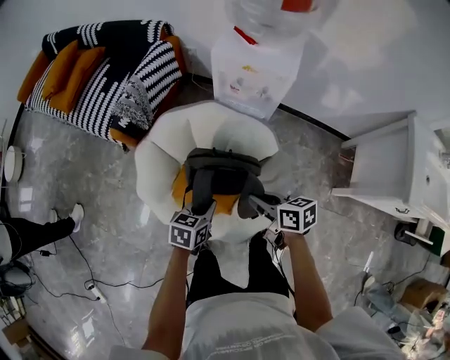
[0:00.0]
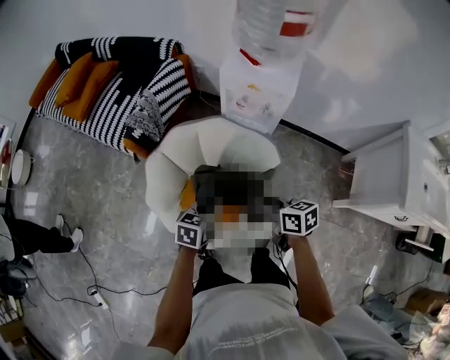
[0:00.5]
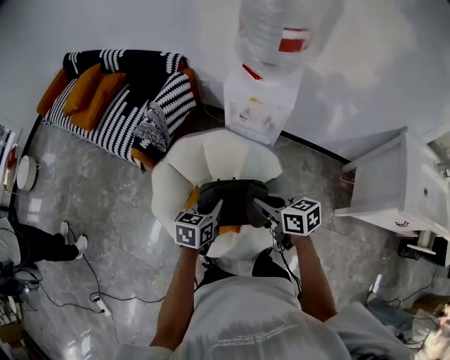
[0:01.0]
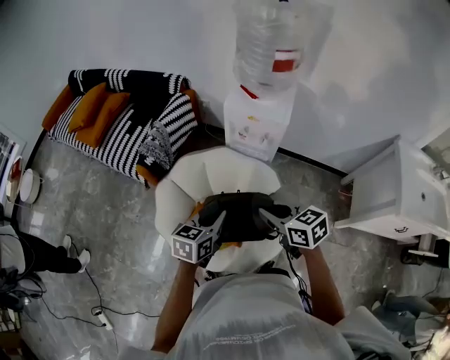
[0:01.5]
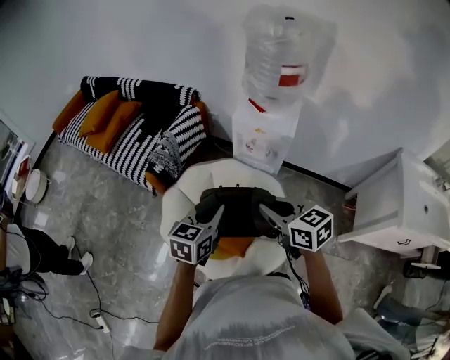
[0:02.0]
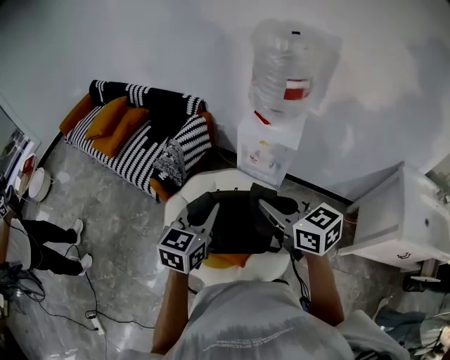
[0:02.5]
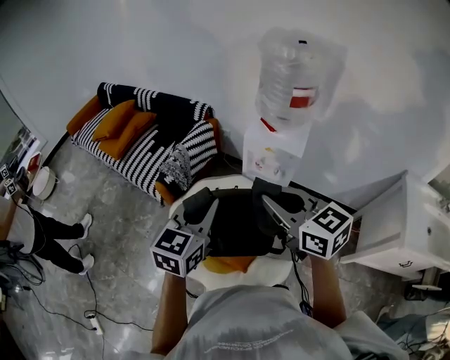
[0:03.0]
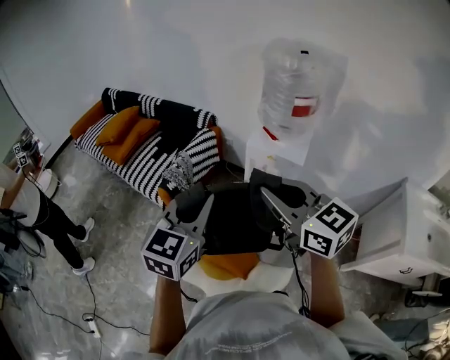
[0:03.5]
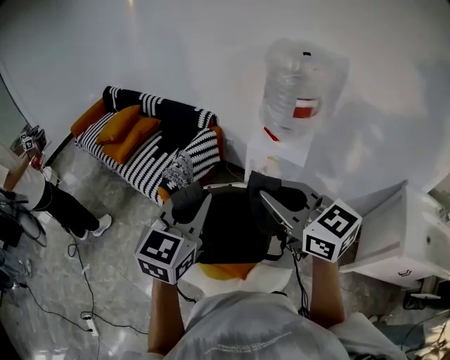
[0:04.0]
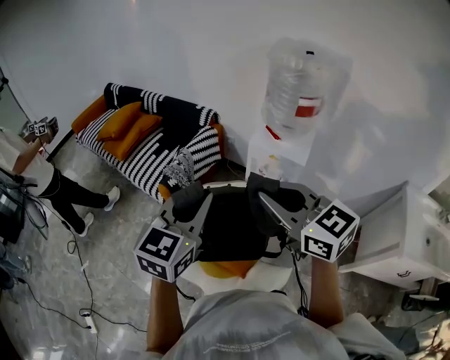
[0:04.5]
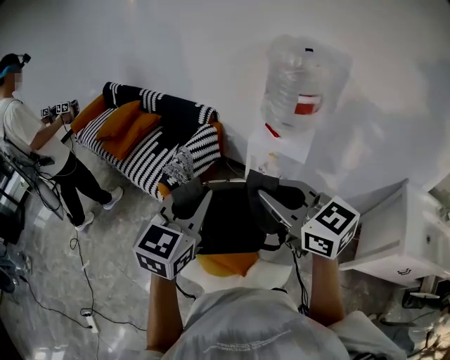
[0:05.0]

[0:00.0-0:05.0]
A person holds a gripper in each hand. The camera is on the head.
0:00.0 to 0:02.5: The two grippers go approximately 30 cm upward. The left gripper swivels about 30 degrees. Meanwhile the right gripper changes its angle by some 40 degrees.
0:02.5 to 0:05.0: The two grippers go some 10 cm upward.

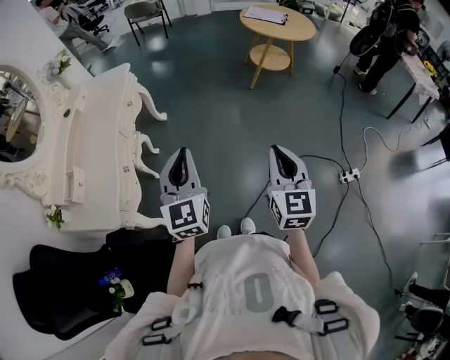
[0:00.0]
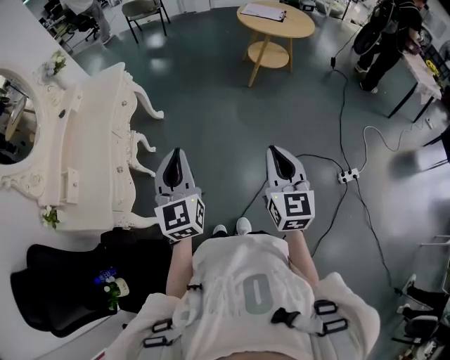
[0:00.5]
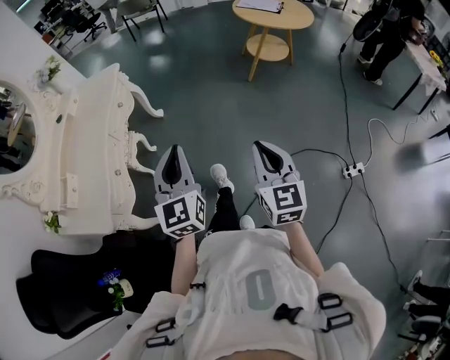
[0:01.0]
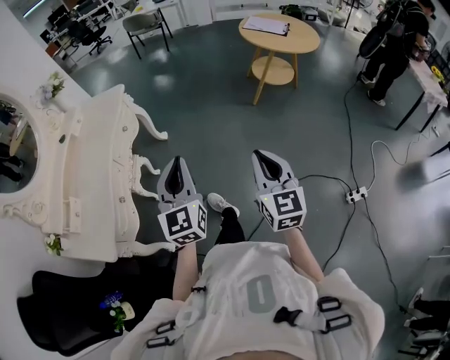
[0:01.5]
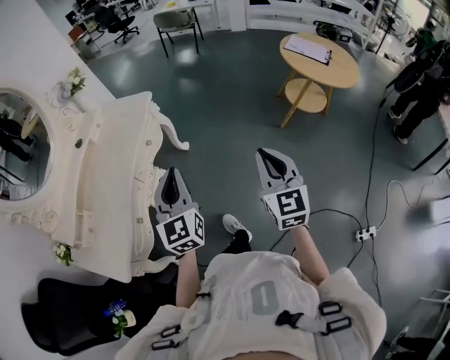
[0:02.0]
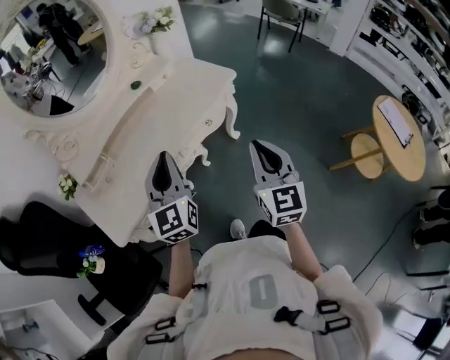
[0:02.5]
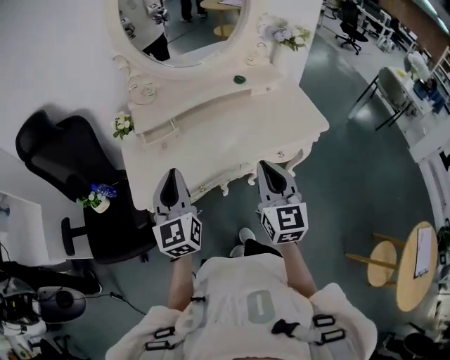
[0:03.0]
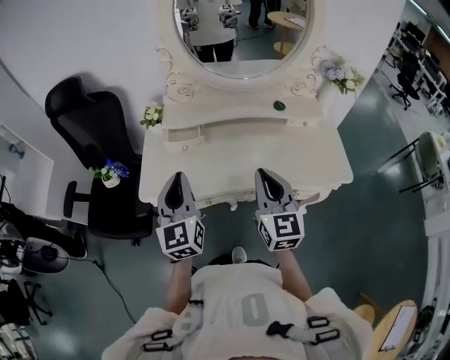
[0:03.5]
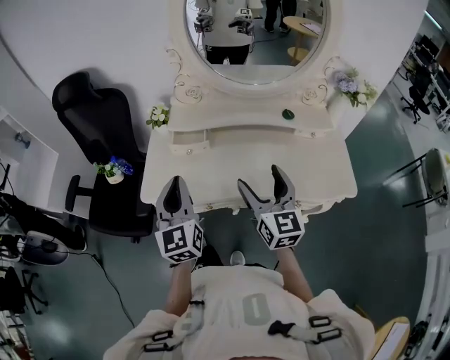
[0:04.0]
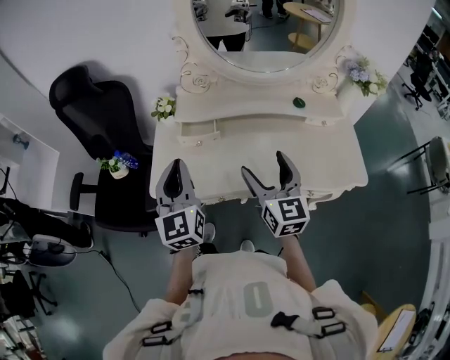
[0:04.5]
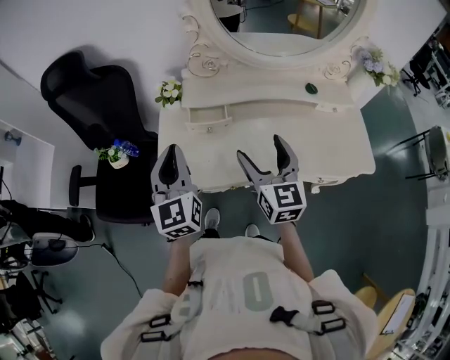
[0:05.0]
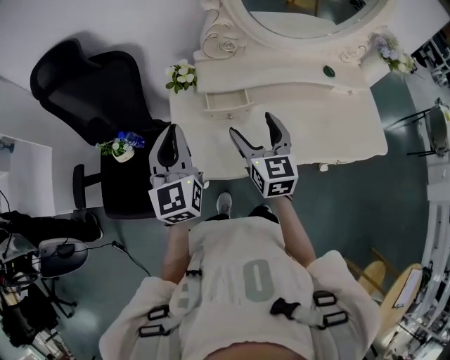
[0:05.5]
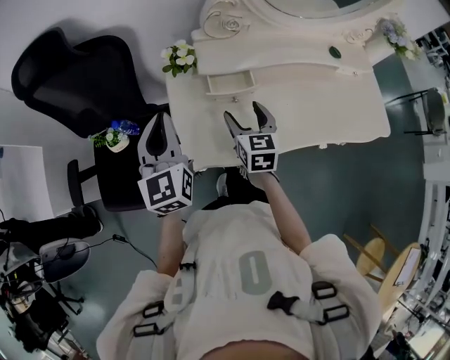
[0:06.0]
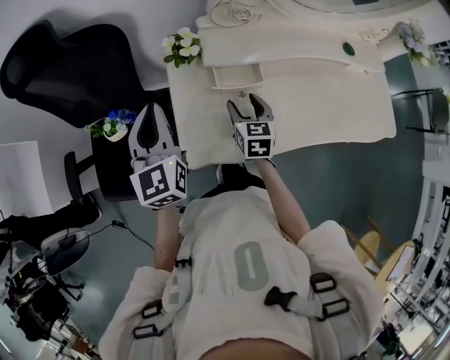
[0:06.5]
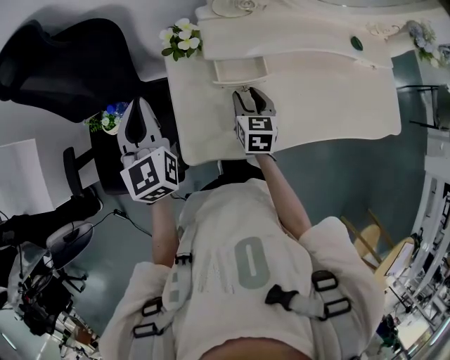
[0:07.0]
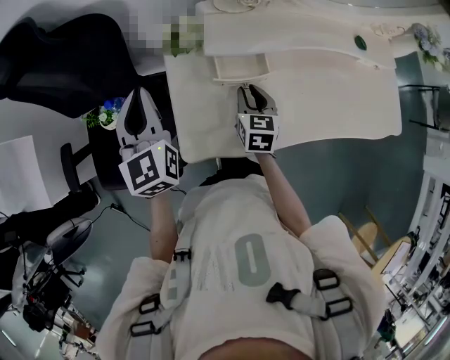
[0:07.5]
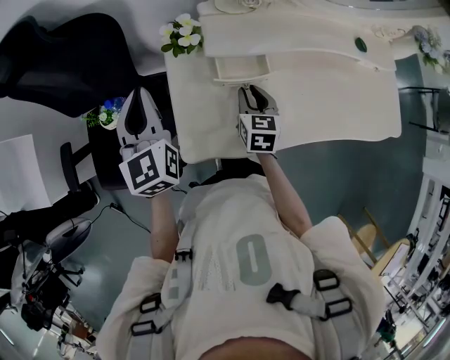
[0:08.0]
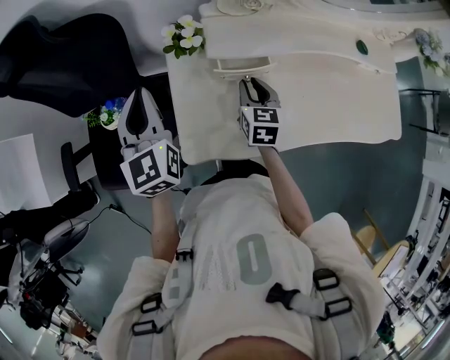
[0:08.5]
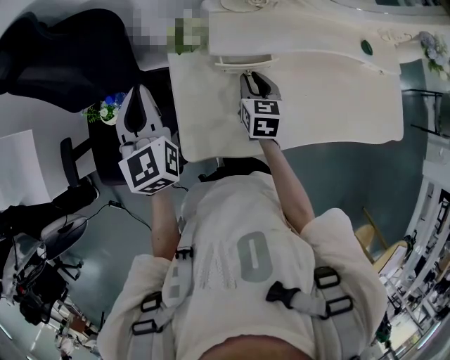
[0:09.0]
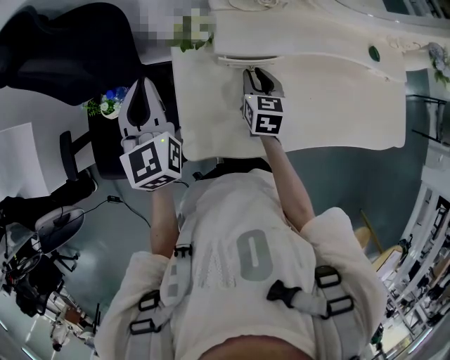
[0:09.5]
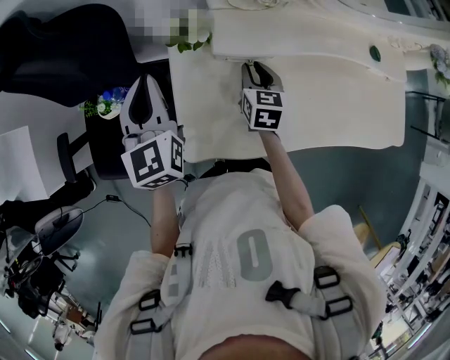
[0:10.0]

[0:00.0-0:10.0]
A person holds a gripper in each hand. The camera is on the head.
0:00.0 to 0:02.0: The grippers both shift forward by approximately 30 cm.
0:02.0 to 0:04.0: The right gripper ends up approximately 60 cm from where it was, turns by roughly 90 degrees, and opens up; the left gripper shifts by approximately 35 cm, and turns by some 80 degrees.
0:04.0 to 0:06.0: The left gripper goes roughly 25 cm to the left and forward; the right gripper moves to the left, forward and downward, some 35 cm, and swivels about 20 degrees.
0:06.0 to 0:08.0: The right gripper moves downward, some 5 cm, and closes its fingers, while the left gripper is displaced forward by roughly 10 cm.
0:08.0 to 0:10.0: The right gripper travels forward by about 5 cm.

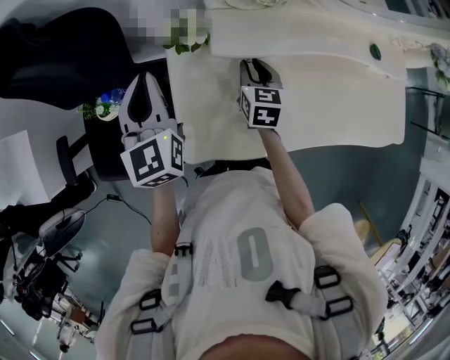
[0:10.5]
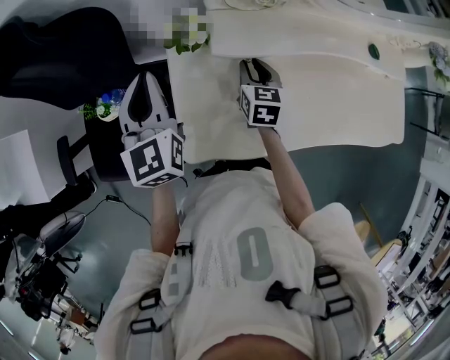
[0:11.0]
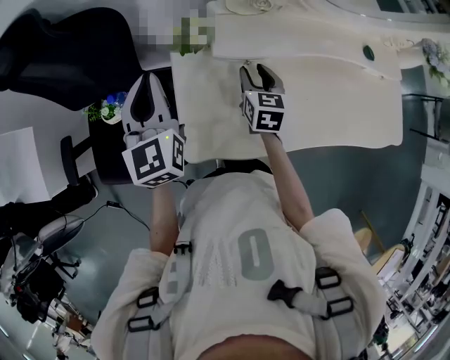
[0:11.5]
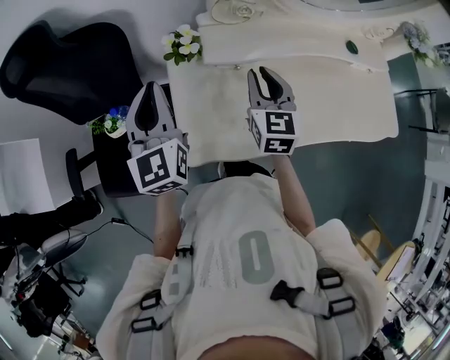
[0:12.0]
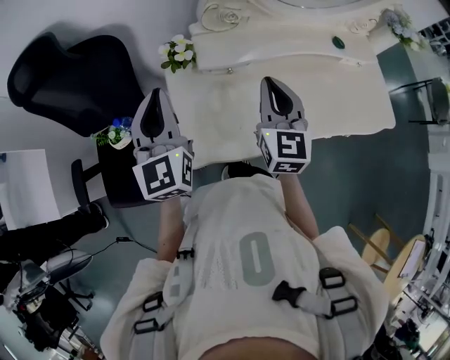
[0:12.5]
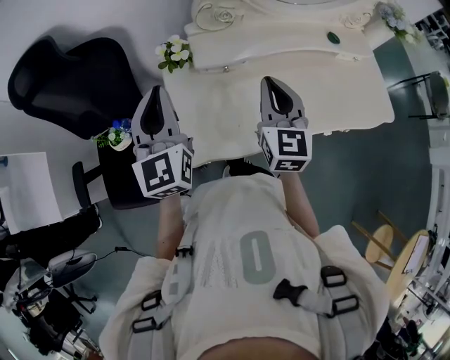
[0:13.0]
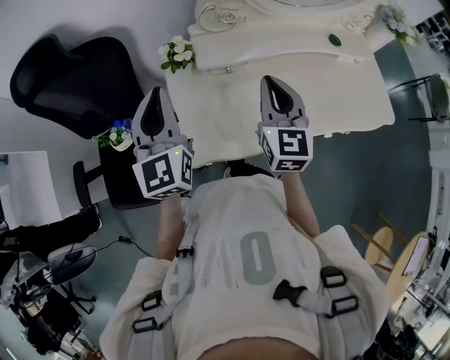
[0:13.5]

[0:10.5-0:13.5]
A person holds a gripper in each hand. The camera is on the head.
0:10.5 to 0:12.0: The right gripper travels upward and backward by roughly 15 cm; the left gripper heads backward and upward, covering some 10 cm.
0:12.0 to 0:13.5: The left gripper moves roughly 5 cm. Meanwhile the right gripper is displaced backward and upward by approximately 10 cm.

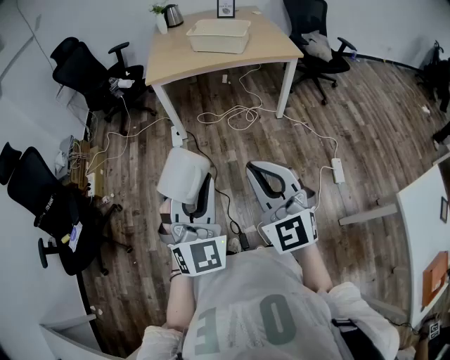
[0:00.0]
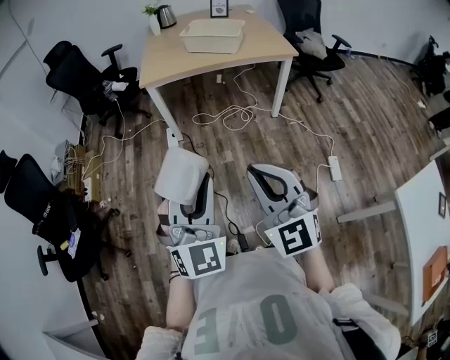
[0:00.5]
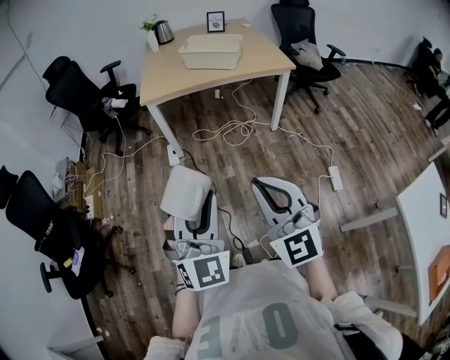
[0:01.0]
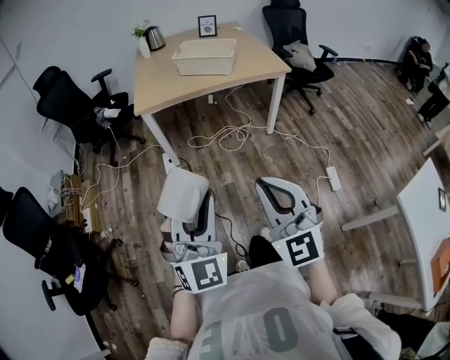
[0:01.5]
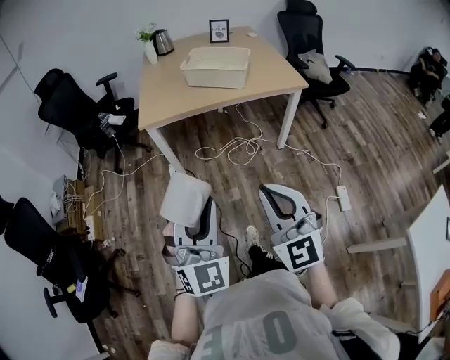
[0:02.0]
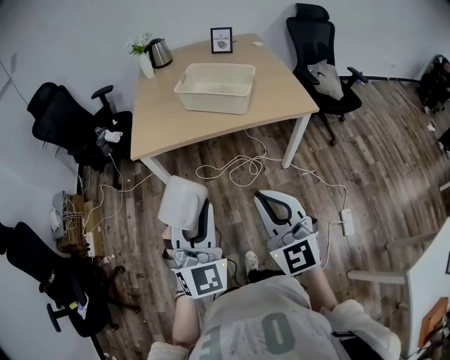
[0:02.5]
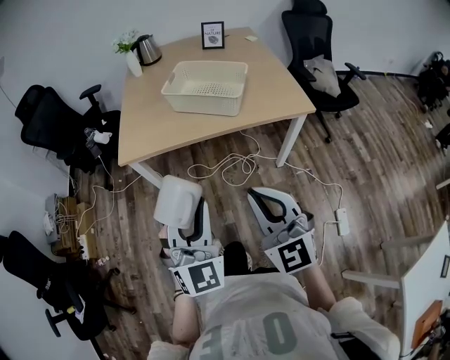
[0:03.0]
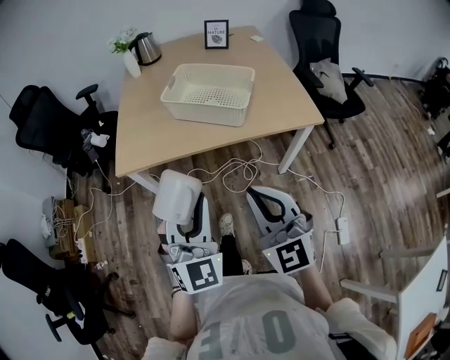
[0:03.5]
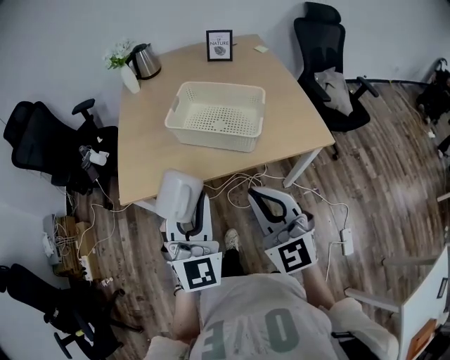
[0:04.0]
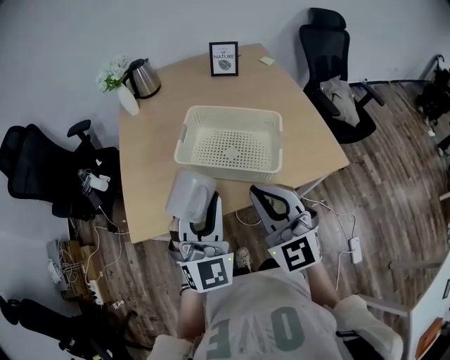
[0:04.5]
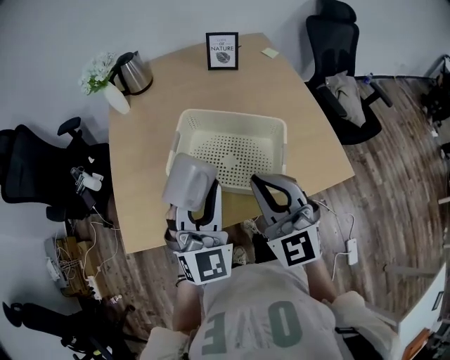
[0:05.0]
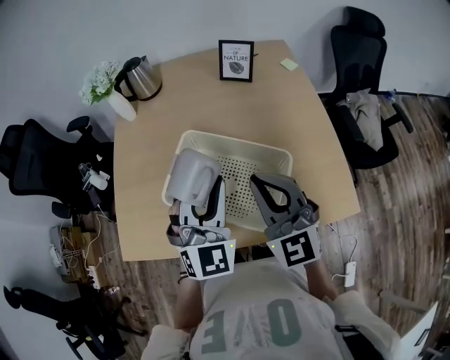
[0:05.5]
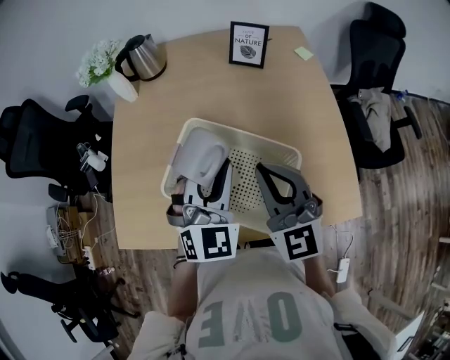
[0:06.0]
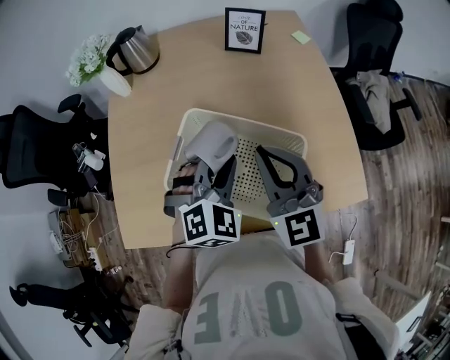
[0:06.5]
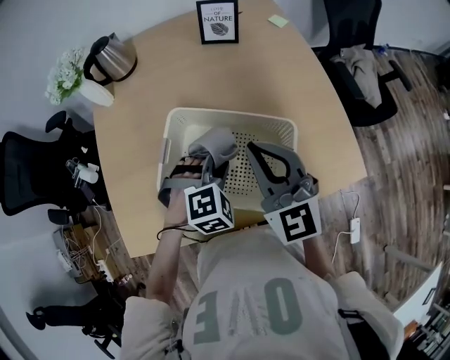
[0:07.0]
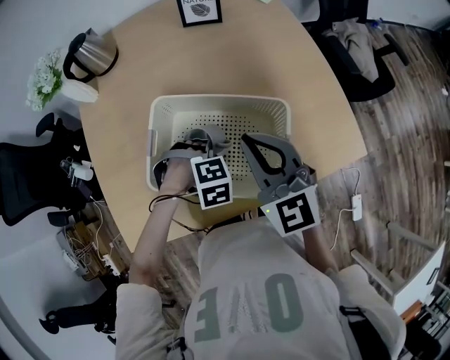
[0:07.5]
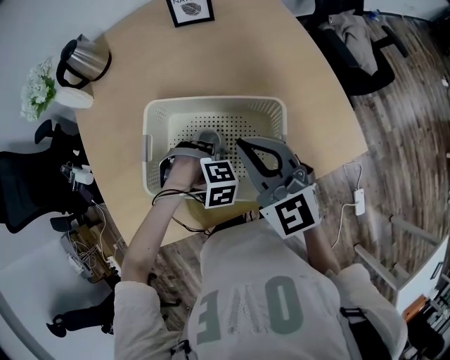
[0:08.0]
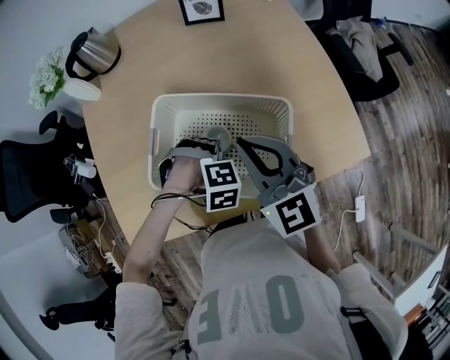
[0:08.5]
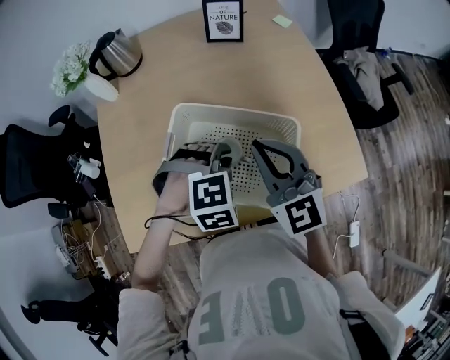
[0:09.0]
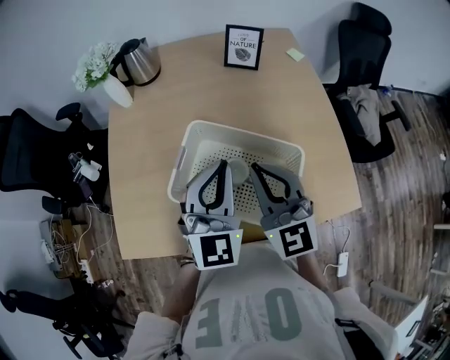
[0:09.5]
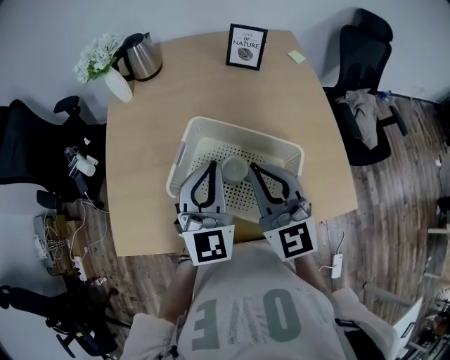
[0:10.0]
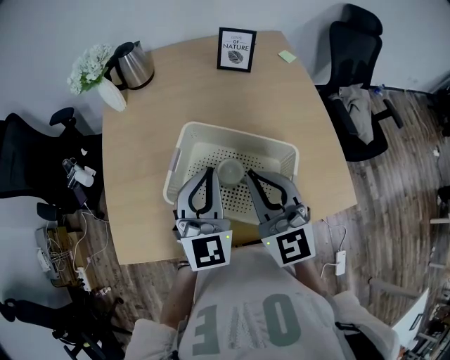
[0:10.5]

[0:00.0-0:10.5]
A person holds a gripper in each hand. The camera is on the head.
0:00.0 to 0:02.0: The two grippers go some 20 cm forward.
0:02.0 to 0:04.0: The two grippers travel together, forward, roughly 50 cm.
0:04.0 to 0:06.5: The two grippers travel together, forward, about 40 cm. The left gripper tips its fingers downward by roughly 30 degrees.
0:06.5 to 0:08.5: The right gripper shifts by about 5 cm. Meanwhile the left gripper heads downward, covering approximately 15 cm, and points its fingers about 50 degrees further downward.
0:08.5 to 0:10.5: The left gripper is displaced upward by about 25 cm, and tips its fingers upward by approximately 80 degrees. The right gripper heads upward, covering some 5 cm.
